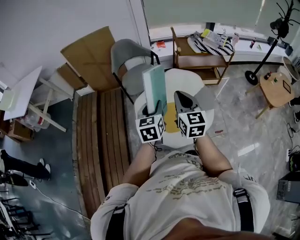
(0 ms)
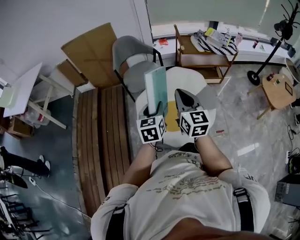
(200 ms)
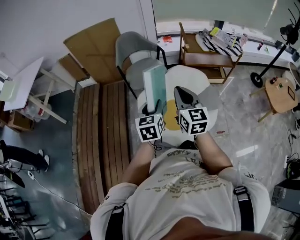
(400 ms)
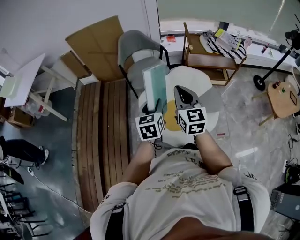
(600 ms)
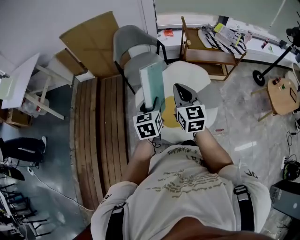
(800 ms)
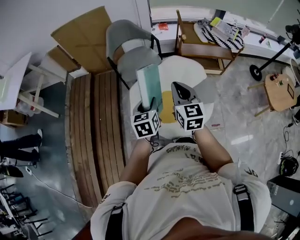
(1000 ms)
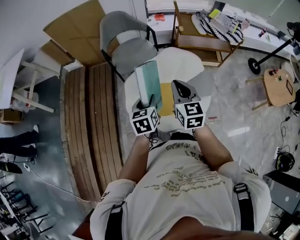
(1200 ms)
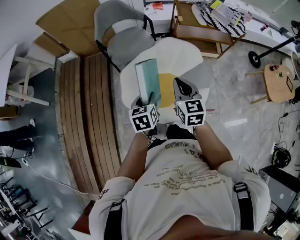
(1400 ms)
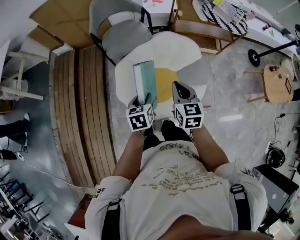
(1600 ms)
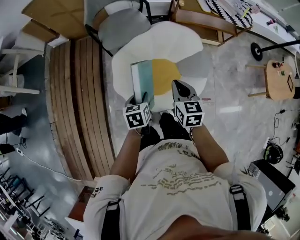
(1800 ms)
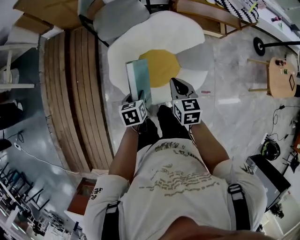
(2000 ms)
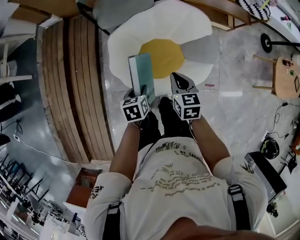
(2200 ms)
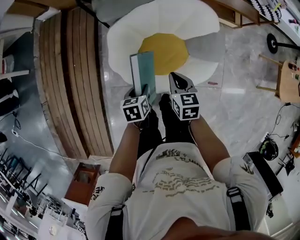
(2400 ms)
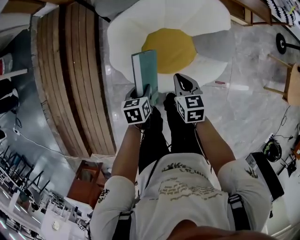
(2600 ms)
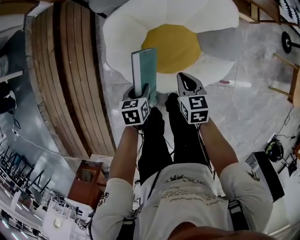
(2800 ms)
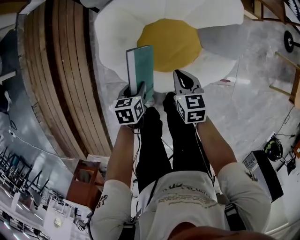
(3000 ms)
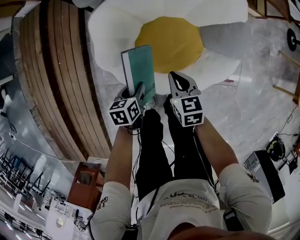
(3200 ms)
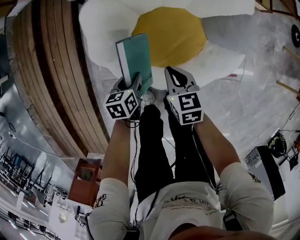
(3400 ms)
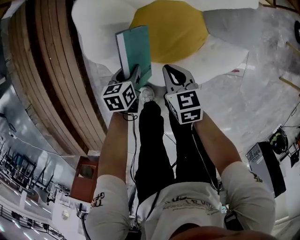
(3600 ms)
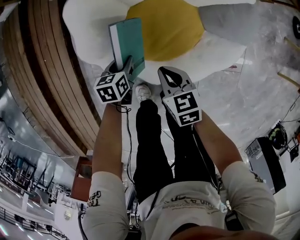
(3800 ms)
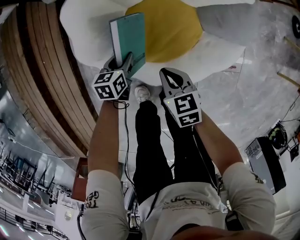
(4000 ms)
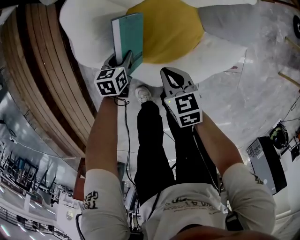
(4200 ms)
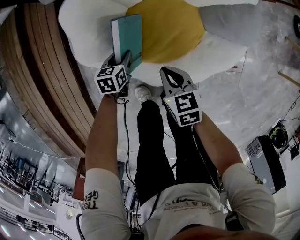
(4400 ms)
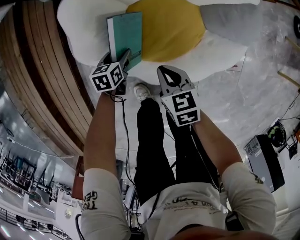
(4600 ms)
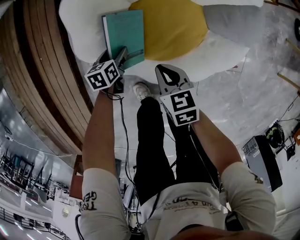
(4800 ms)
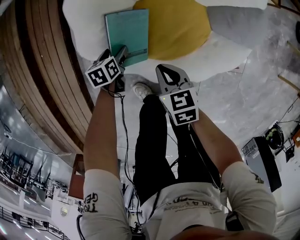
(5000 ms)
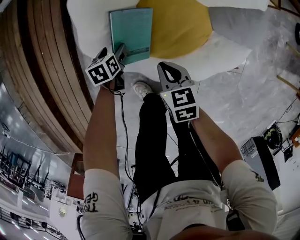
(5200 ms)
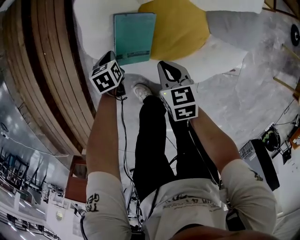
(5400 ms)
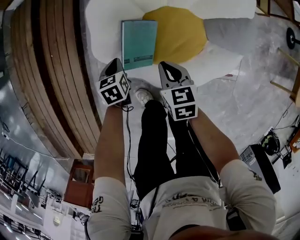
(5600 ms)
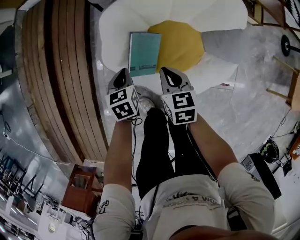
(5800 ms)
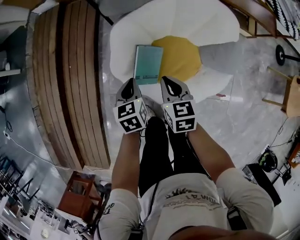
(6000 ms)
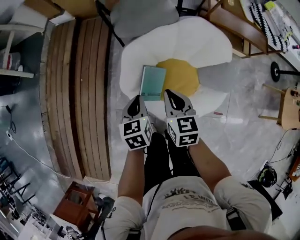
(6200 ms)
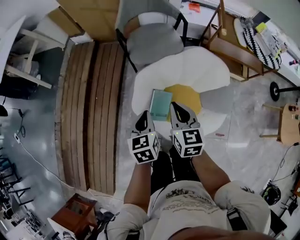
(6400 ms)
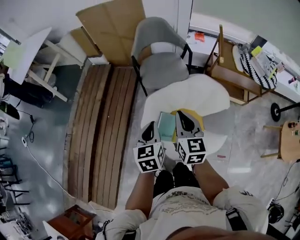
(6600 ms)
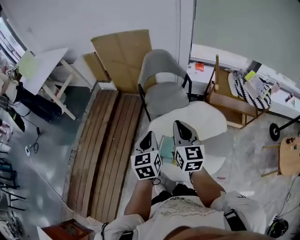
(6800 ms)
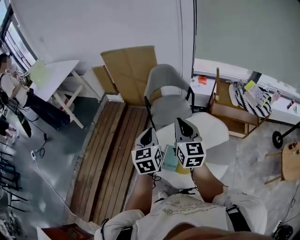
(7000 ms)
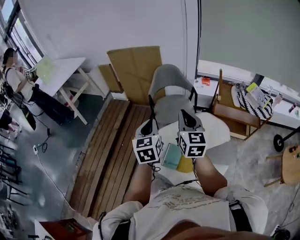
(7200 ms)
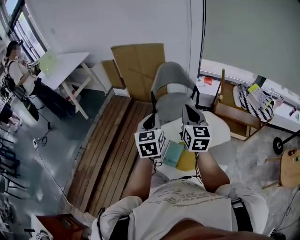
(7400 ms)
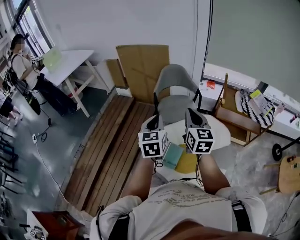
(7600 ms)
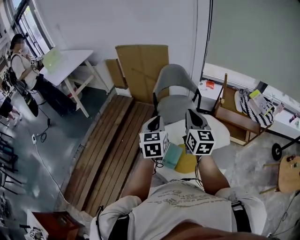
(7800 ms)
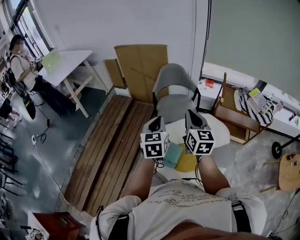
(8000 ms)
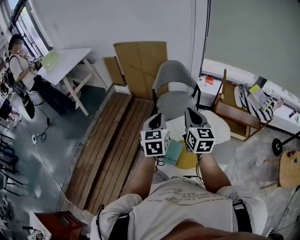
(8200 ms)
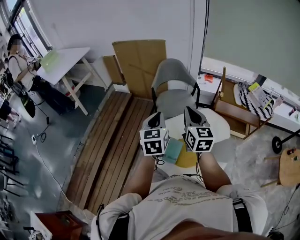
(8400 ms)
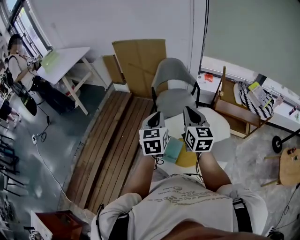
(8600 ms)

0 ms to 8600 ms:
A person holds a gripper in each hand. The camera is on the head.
0 ms to 1400 ms: The left gripper goes about 15 cm downward, and swivels about 20 degrees; the right gripper heads downward and forward, covering approximately 15 cm.
1400 ms to 2800 ms: Both grippers move downward, some 35 cm. The left gripper turns by roughly 20 degrees, while the right gripper changes its angle by roughly 30 degrees.
2800 ms to 4400 ms: The grippers both shift downward by some 20 cm.
4400 ms to 5800 ms: The left gripper travels upward by roughly 20 cm, turns by about 20 degrees, and closes; the right gripper is displaced upward and to the left by about 15 cm.
5800 ms to 7200 ms: Both grippers move upward, about 60 cm. The left gripper tips its fingers upward by approximately 40 degrees. Meanwhile the right gripper points its fingers roughly 40 degrees further upward.
7200 ms to 8600 ms: The grippers make only small movements.

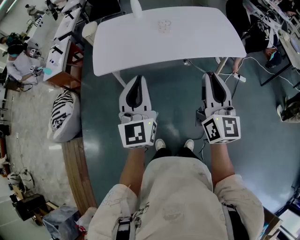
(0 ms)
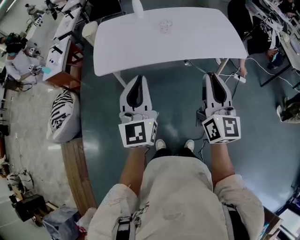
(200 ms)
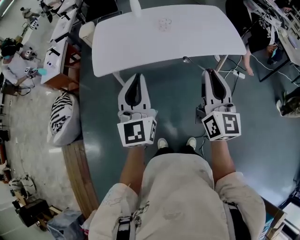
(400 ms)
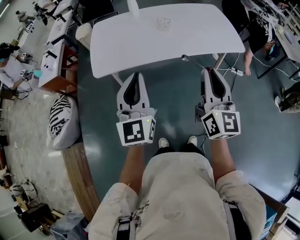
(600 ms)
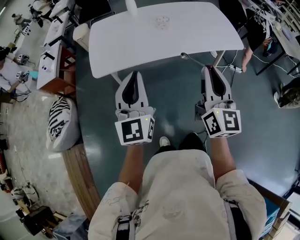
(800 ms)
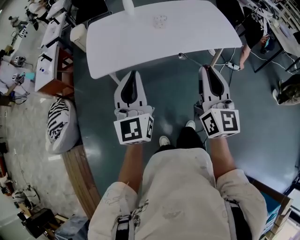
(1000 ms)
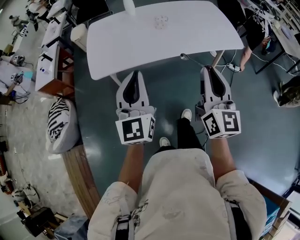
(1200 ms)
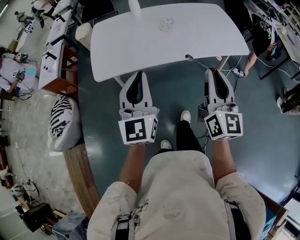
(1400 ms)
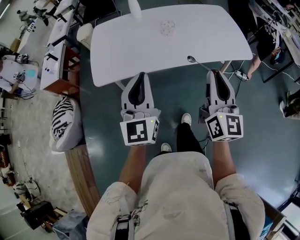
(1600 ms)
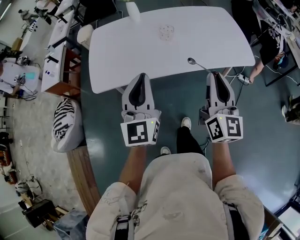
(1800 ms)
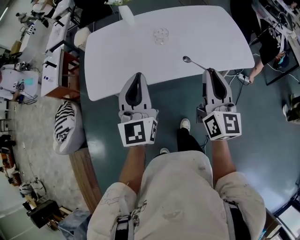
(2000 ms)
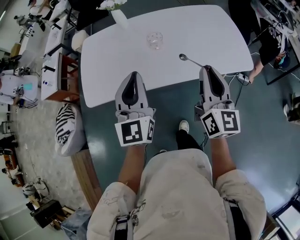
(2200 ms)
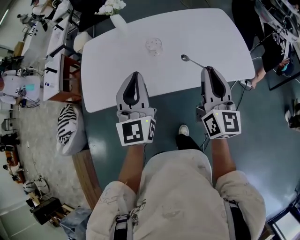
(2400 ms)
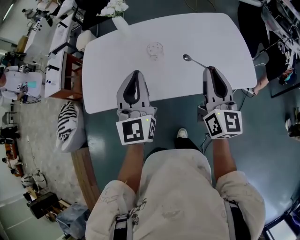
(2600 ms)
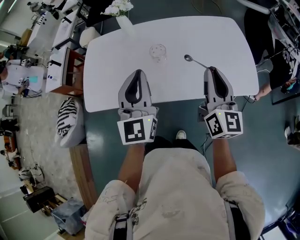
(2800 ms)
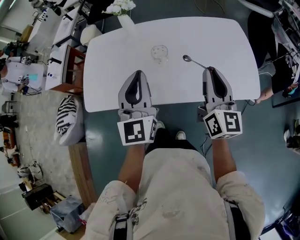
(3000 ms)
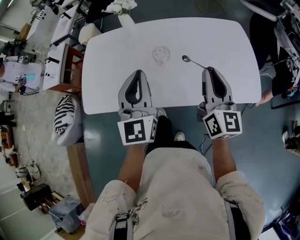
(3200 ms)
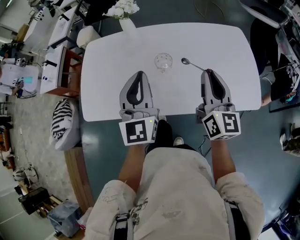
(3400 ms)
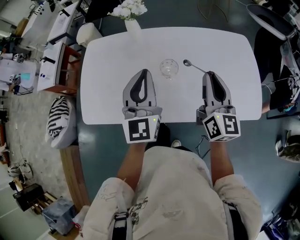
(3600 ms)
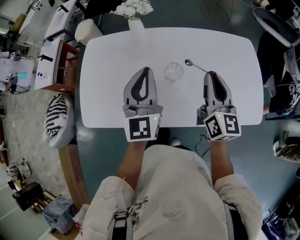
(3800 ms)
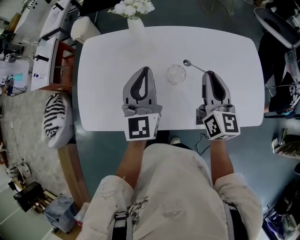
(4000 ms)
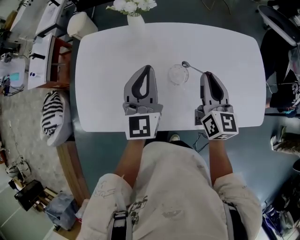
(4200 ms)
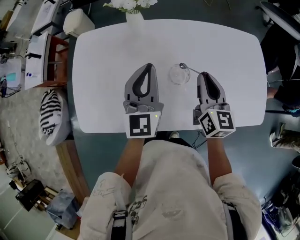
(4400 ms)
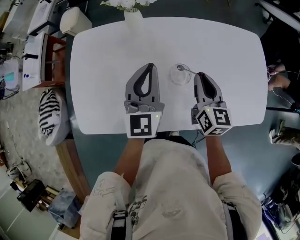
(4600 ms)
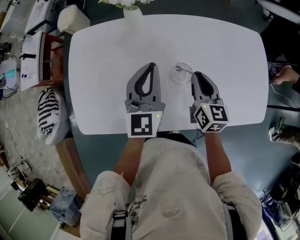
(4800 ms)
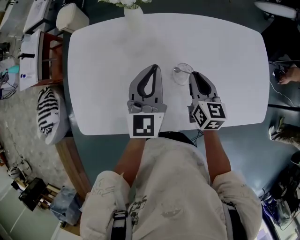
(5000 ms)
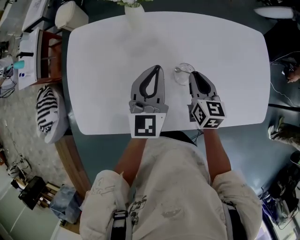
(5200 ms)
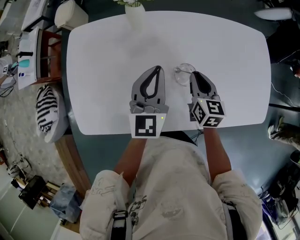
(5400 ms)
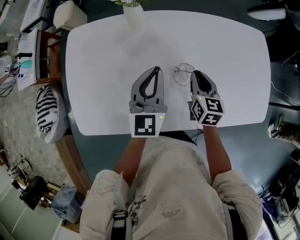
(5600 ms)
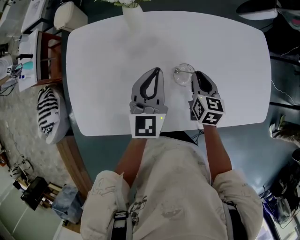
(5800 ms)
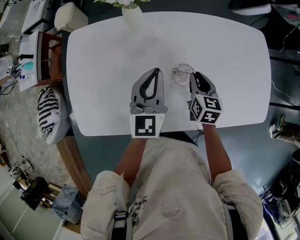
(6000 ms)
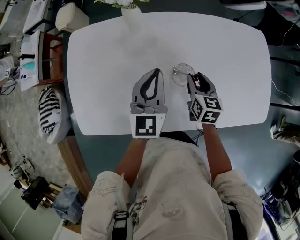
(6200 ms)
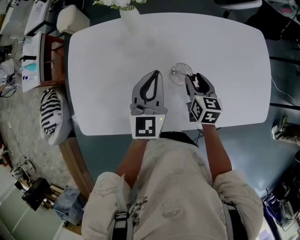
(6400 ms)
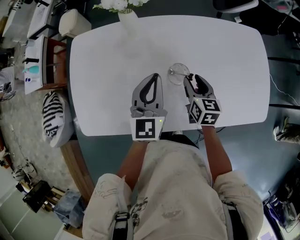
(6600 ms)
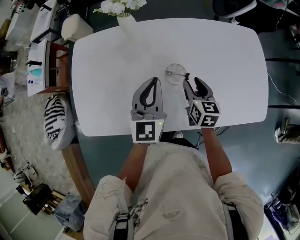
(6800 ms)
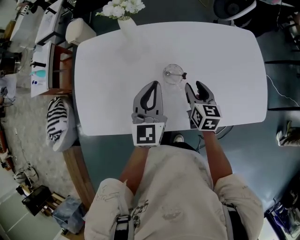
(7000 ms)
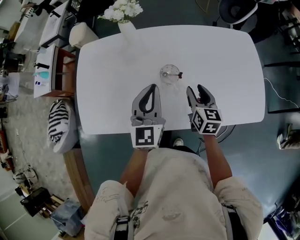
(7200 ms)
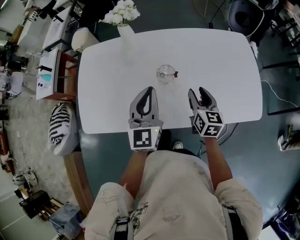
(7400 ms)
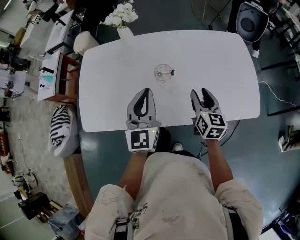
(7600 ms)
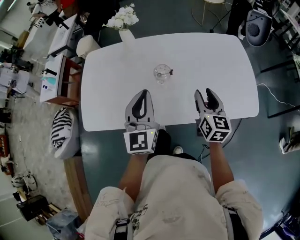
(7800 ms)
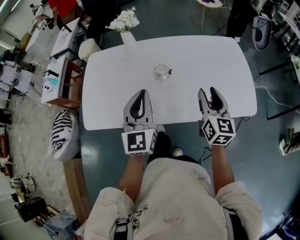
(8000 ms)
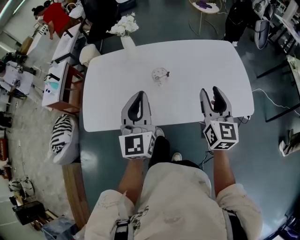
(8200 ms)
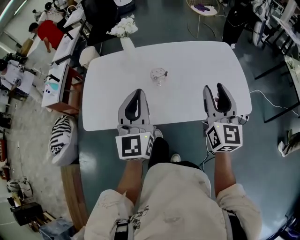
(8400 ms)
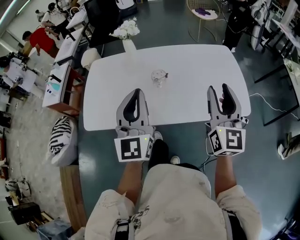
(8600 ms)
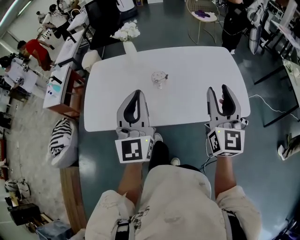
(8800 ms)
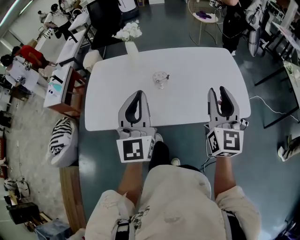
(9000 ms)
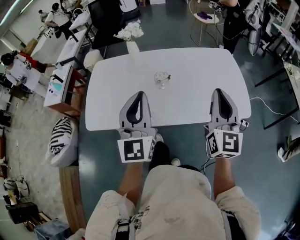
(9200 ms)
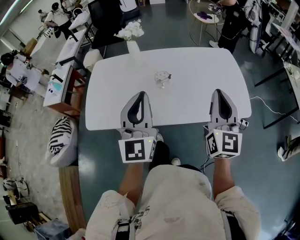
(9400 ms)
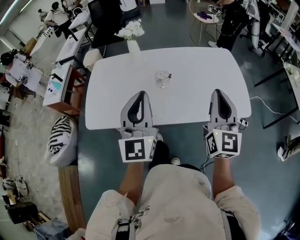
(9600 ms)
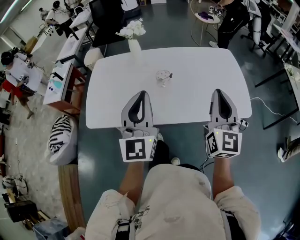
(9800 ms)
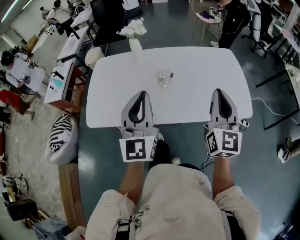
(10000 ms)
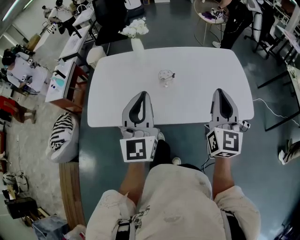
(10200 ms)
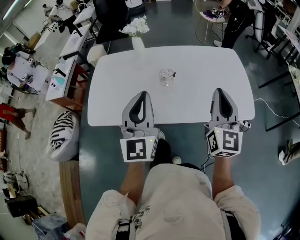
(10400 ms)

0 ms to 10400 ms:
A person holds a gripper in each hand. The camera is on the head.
0 ms to 1400 ms: The right gripper changes place by about 5 cm. The left gripper is displaced forward and to the left by approximately 10 cm.
1400 ms to 3000 ms: The grippers both shift forward and to the right by about 35 cm.
3000 ms to 4400 ms: Both grippers travel together forward, to the left and downward, approximately 25 cm.
4400 ms to 6000 ms: The right gripper moves downward, roughly 15 cm, and turns by approximately 20 degrees, while the left gripper moves downward, about 5 cm.
6000 ms to 7400 ms: The two grippers go roughly 15 cm backward, to the right and upward. The right gripper opens up.
7400 ms to 9000 ms: The left gripper heads backward and upward, covering approximately 20 cm. Meanwhile the right gripper goes approximately 30 cm upward and backward, and points its fingers approximately 30 degrees further upward.
9000 ms to 10400 ms: The right gripper closes.

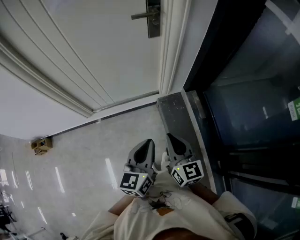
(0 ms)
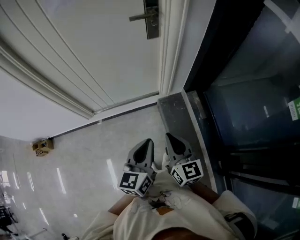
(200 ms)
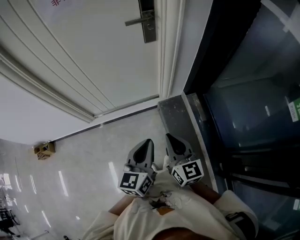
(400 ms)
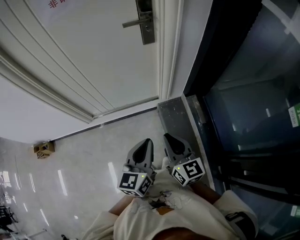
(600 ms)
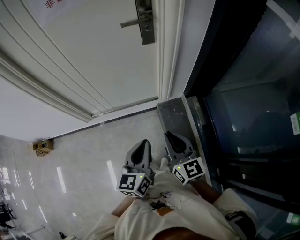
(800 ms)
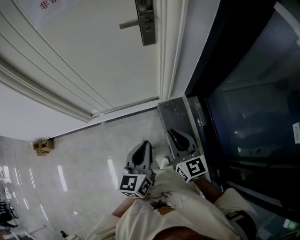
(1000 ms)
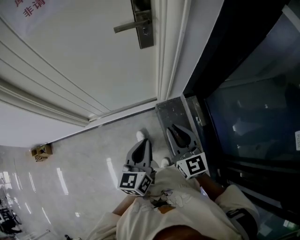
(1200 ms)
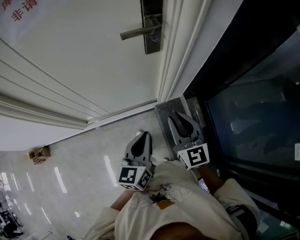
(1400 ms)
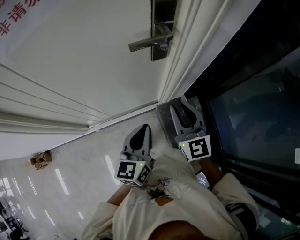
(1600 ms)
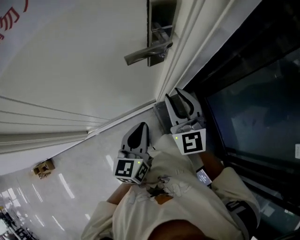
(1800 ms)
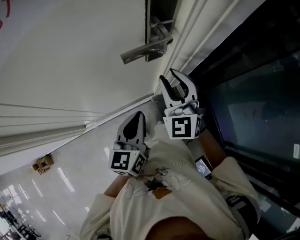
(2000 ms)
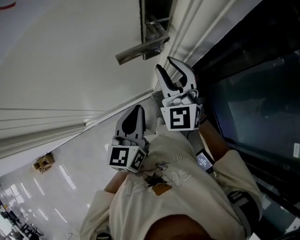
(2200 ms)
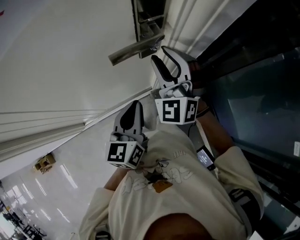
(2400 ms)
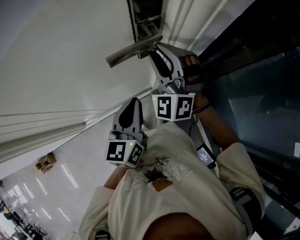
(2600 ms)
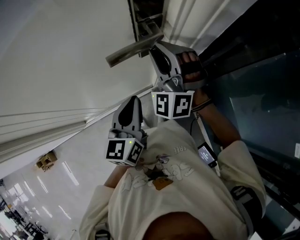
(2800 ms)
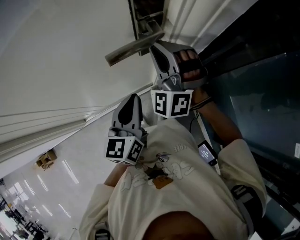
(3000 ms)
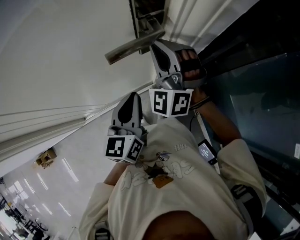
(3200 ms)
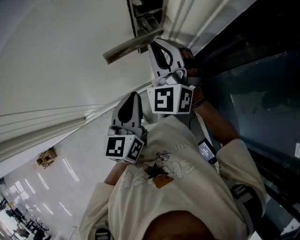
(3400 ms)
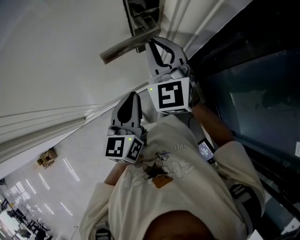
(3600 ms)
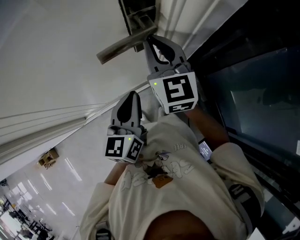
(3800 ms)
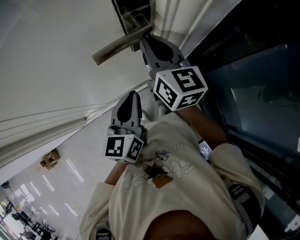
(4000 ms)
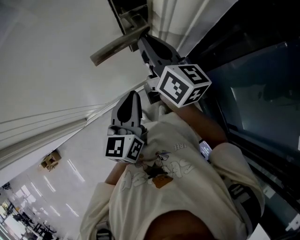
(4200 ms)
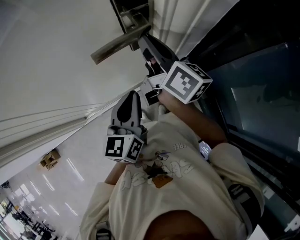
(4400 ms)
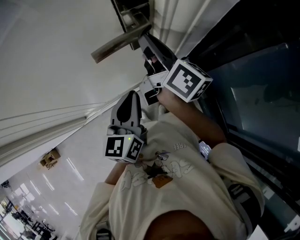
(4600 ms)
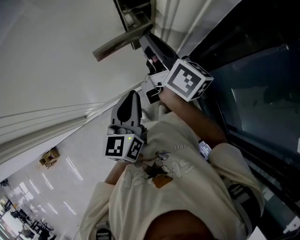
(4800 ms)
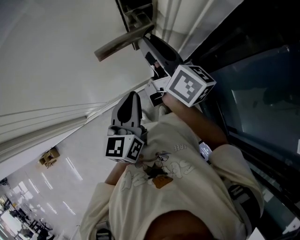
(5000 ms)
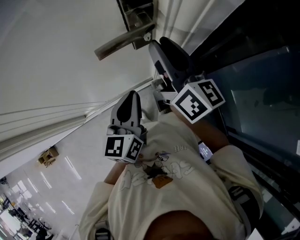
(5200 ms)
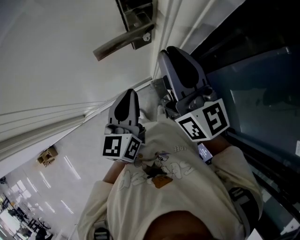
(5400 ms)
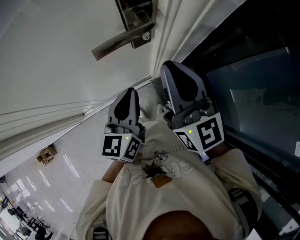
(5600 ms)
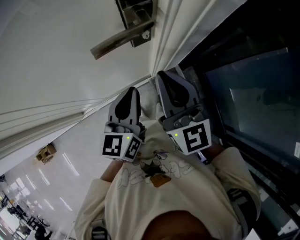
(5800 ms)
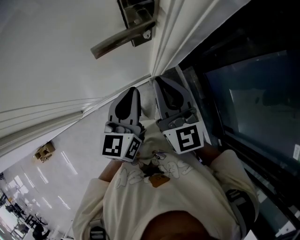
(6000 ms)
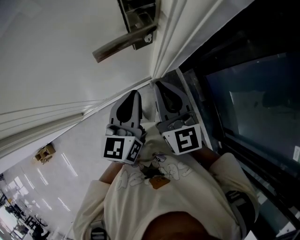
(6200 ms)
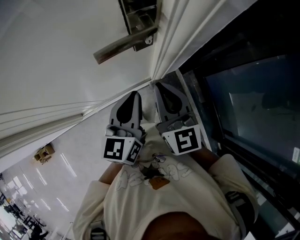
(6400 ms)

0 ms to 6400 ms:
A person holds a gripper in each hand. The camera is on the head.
0 ms to 1600 ms: Both grippers travel together forward, about 30 cm. The right gripper changes its angle by roughly 20 degrees.
1600 ms to 3200 ms: The two grippers go approximately 15 cm forward. The right gripper rolls counterclockwise, seen from behind, by some 50 degrees, and opens, then closes once more.
3200 ms to 4800 ms: The right gripper rotates around the line of its fingers by roughly 110 degrees, clockwise from behind.
4800 ms to 6400 ms: The right gripper goes about 10 cm backward, rolls counterclockwise, seen from behind, by about 50 degrees, and opens, then closes again.
